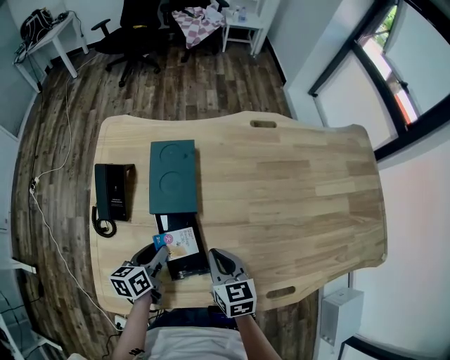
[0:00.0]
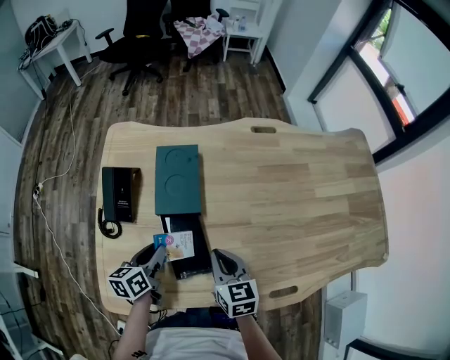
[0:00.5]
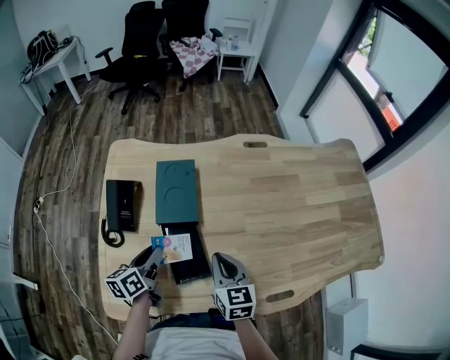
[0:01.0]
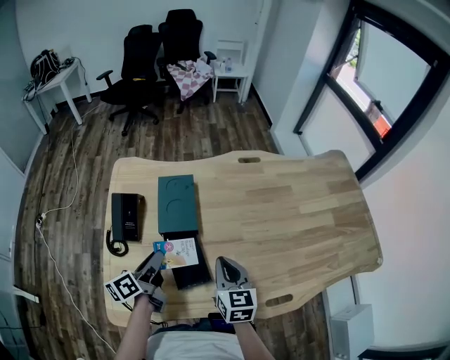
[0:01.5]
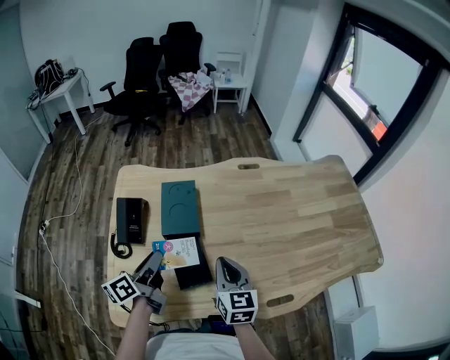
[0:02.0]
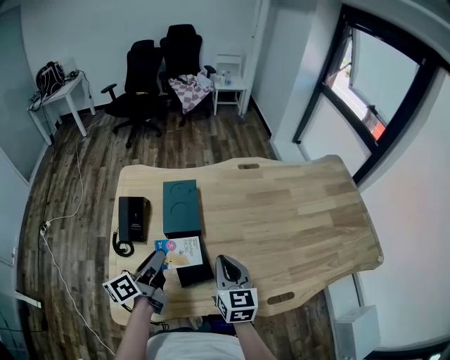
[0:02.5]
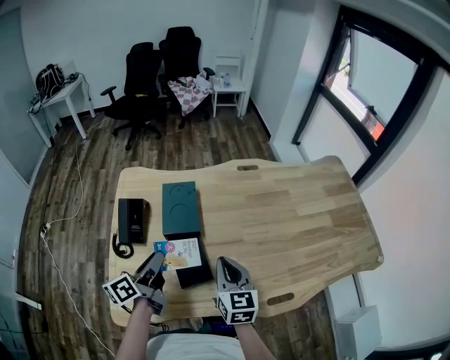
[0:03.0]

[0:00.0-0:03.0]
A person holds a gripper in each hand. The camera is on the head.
0.0 to 1.5 s: The two grippers go approximately 10 cm upward. The left gripper rotates about 30 degrees.
1.5 to 3.0 s: The left gripper travels upward by roughly 5 cm.

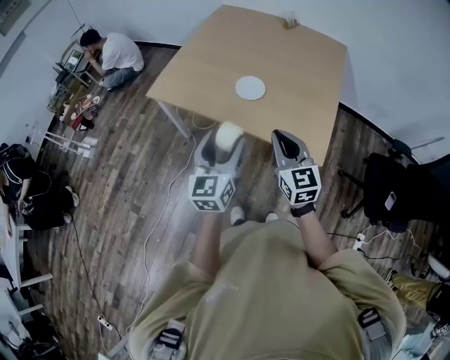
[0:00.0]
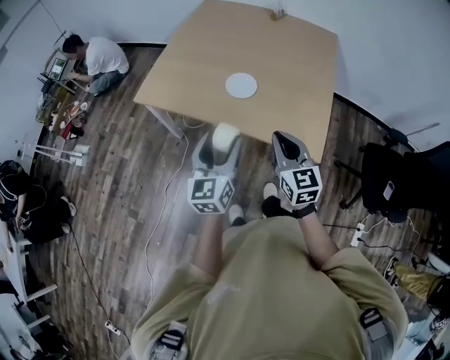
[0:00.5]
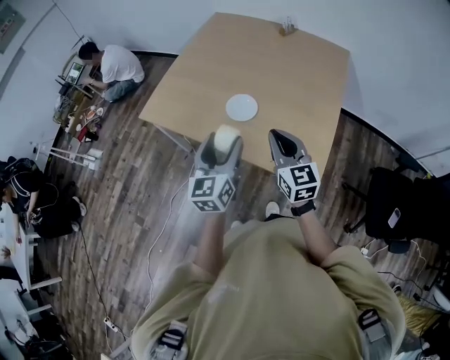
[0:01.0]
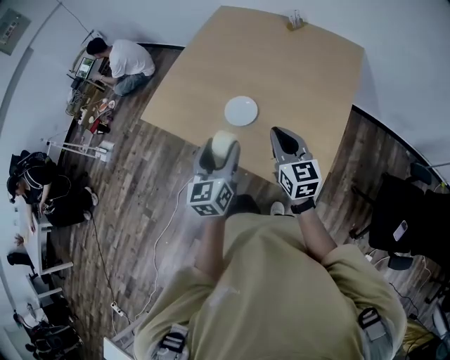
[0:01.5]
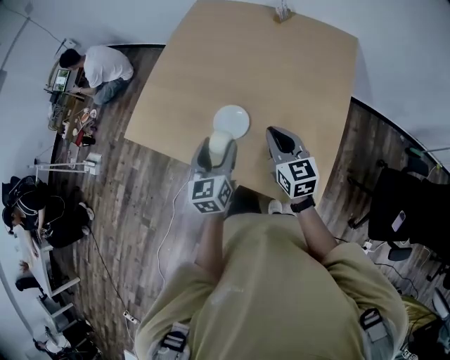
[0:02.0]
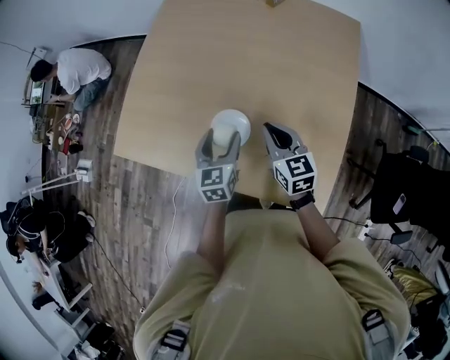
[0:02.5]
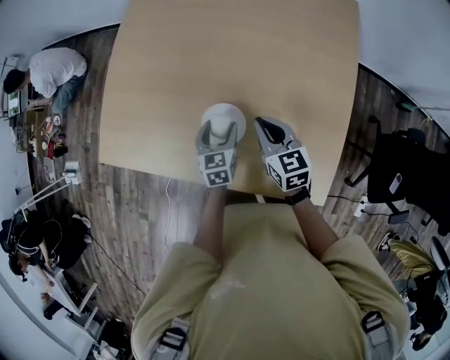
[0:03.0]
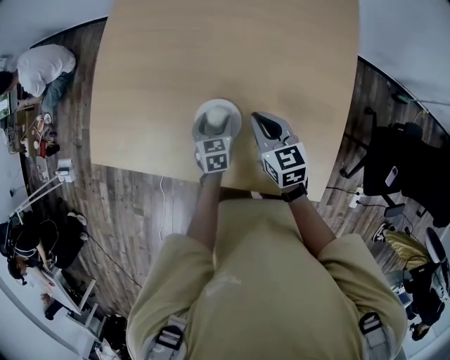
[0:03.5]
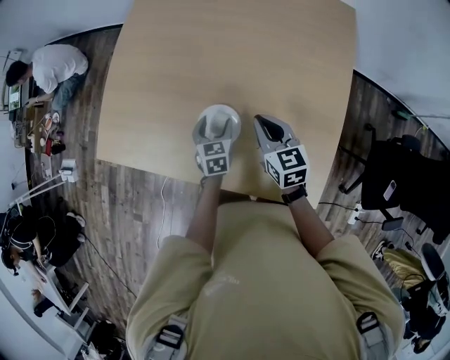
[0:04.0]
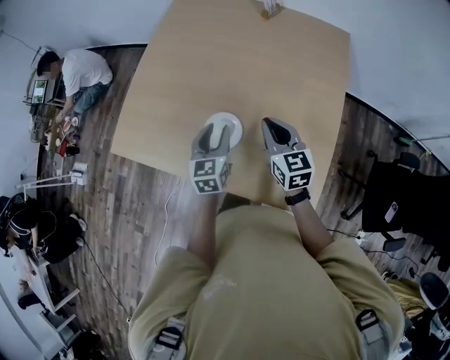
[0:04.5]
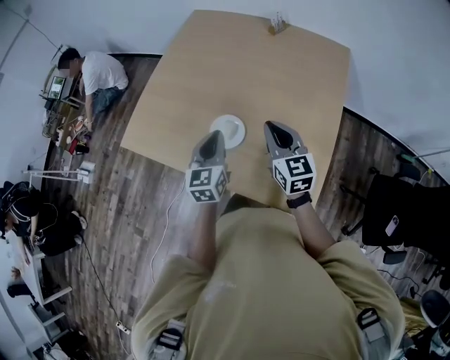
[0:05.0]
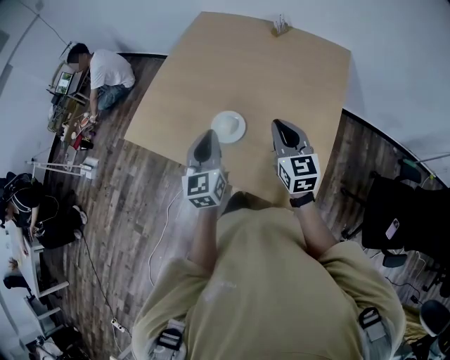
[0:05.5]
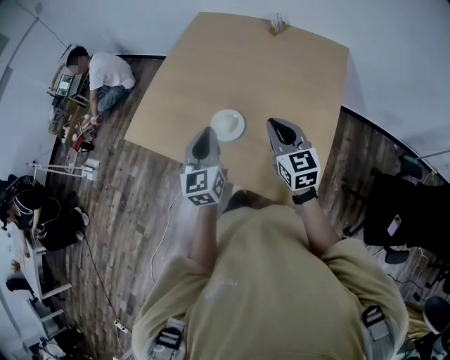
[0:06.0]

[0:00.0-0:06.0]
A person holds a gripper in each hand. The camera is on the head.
0.0 to 2.0 s: Both grippers move forward and to the right, about 35 cm.
2.0 to 4.0 s: The right gripper shifts some 15 cm forward and downward. Meanwhile the left gripper is displaced downward and forward by roughly 25 cm, and turns by roughly 30 degrees.
4.0 to 6.0 s: The left gripper shifts approximately 35 cm upward and backward, tips its fingers upward by approximately 30 degrees, and closes; the right gripper moves backward and upward, roughly 20 cm, and rotates about 20 degrees.

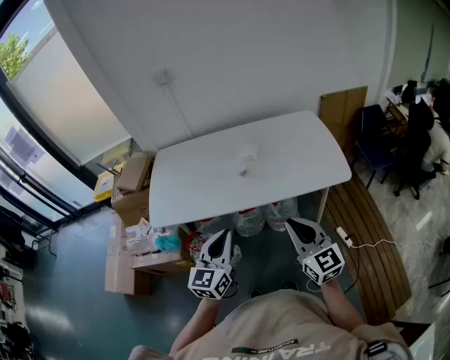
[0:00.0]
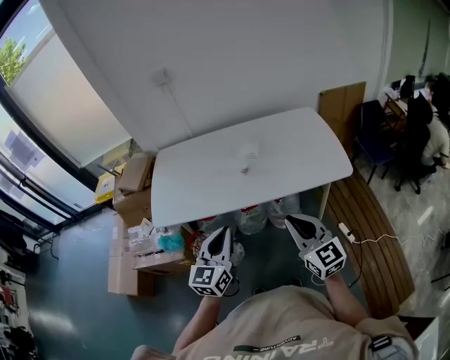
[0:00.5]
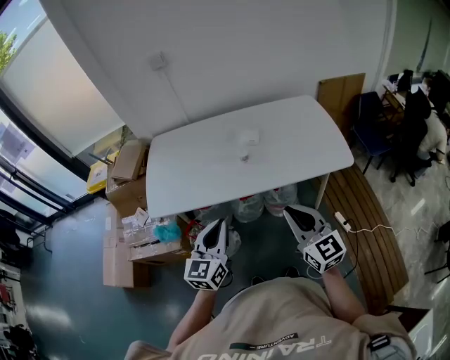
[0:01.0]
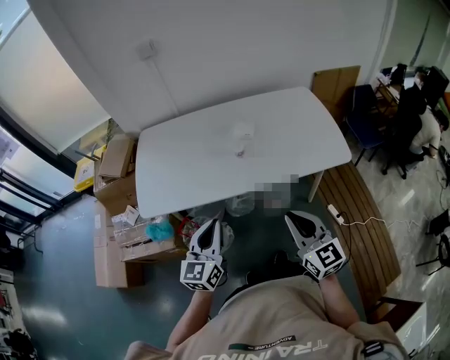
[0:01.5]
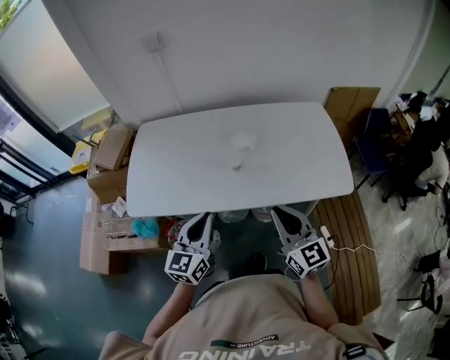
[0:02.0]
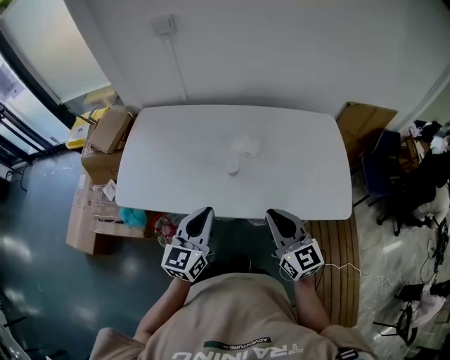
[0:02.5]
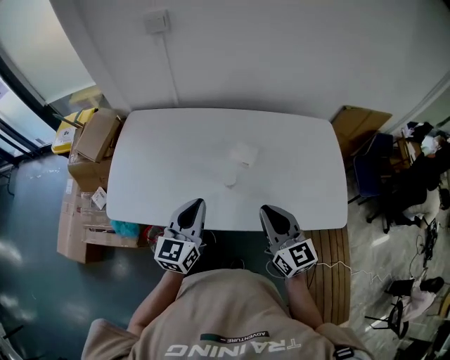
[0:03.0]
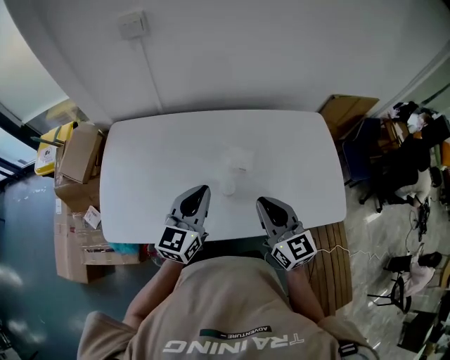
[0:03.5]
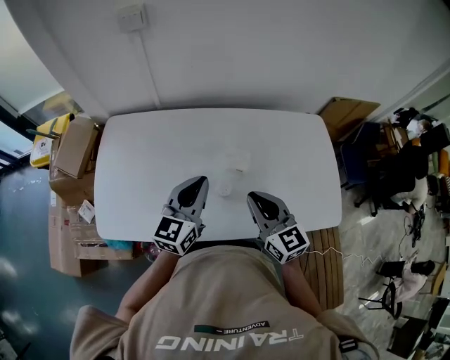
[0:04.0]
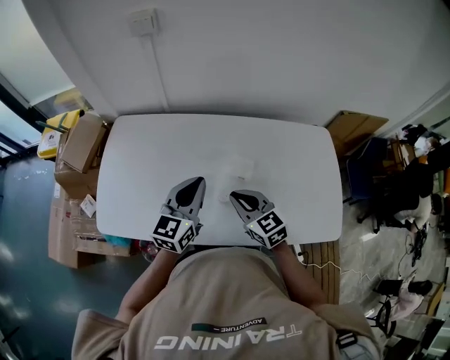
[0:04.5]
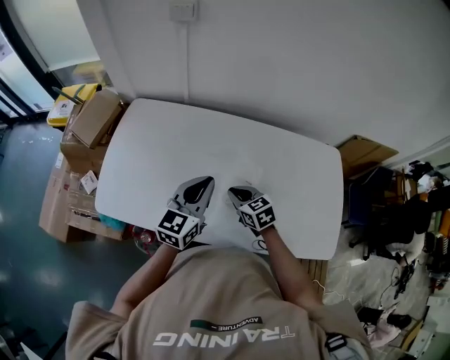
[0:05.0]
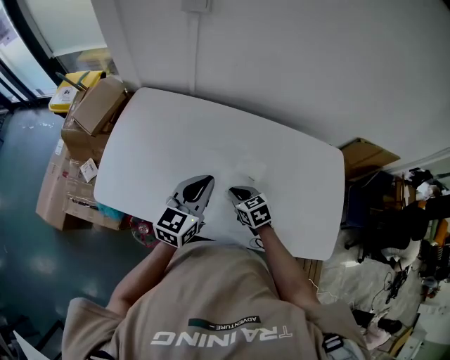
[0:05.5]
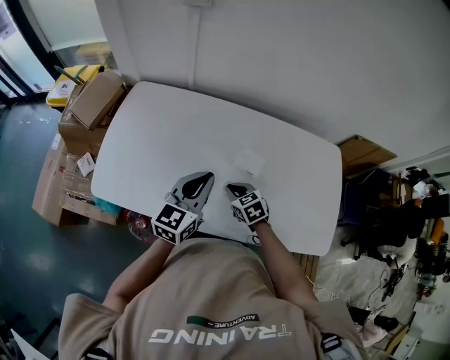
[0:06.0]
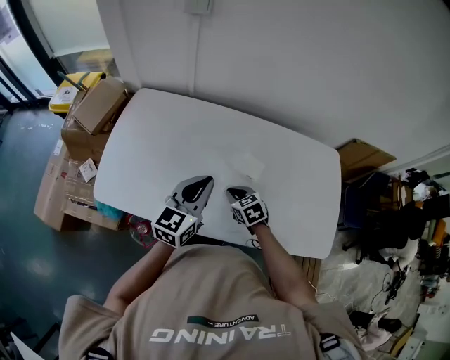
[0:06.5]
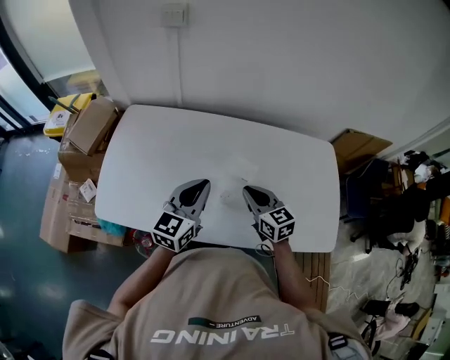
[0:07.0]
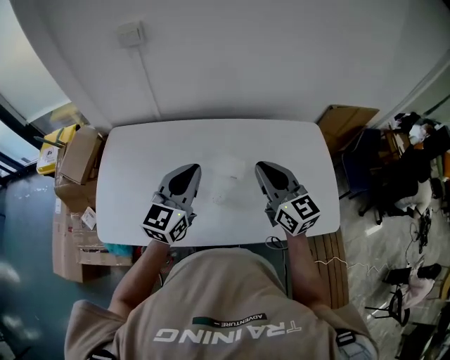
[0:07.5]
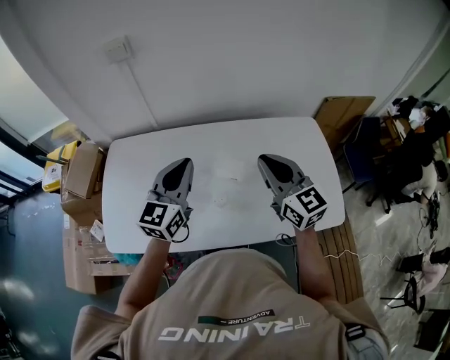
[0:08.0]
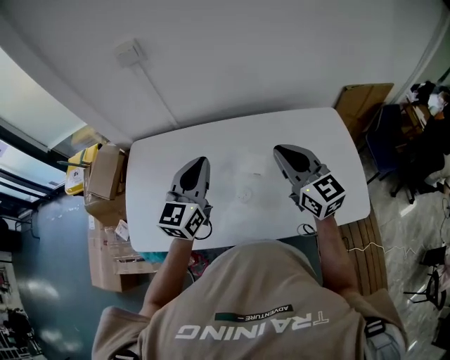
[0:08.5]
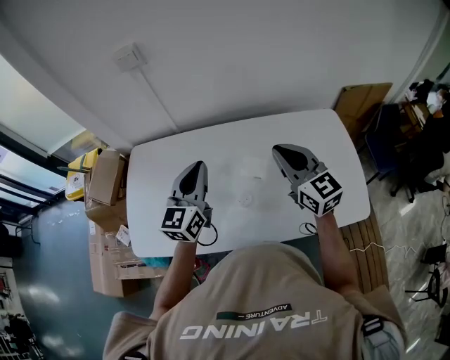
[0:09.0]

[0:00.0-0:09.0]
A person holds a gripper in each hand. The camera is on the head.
0.0 to 2.0 s: Both grippers move forward, some 10 cm.
2.0 to 4.5 s: The grippers both shift forward by approximately 25 cm. The right gripper changes its angle by some 30 degrees.
4.5 to 7.0 s: The right gripper reaches approximately 15 cm downward, then returns.
7.0 to 9.0 s: The right gripper travels upward by about 15 cm, and changes its angle by about 20 degrees. The left gripper moves forward and upward, some 10 cm.

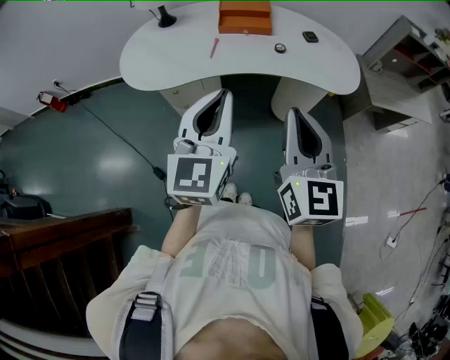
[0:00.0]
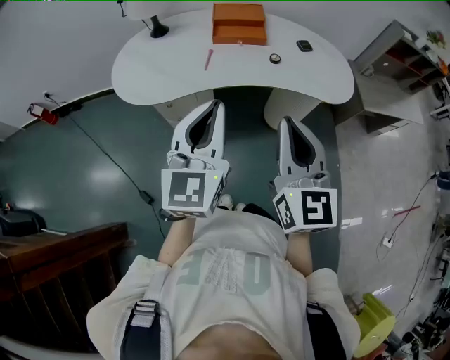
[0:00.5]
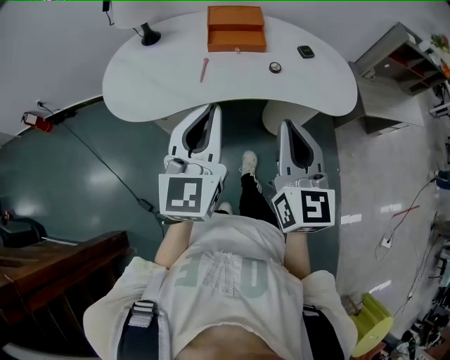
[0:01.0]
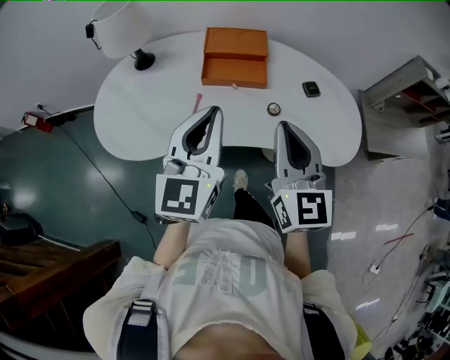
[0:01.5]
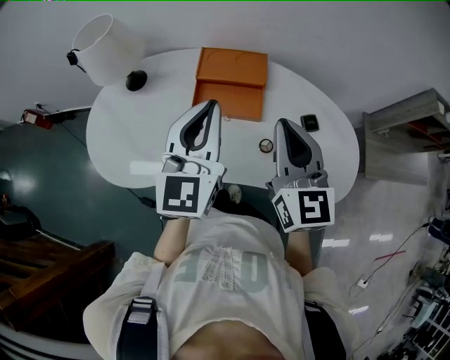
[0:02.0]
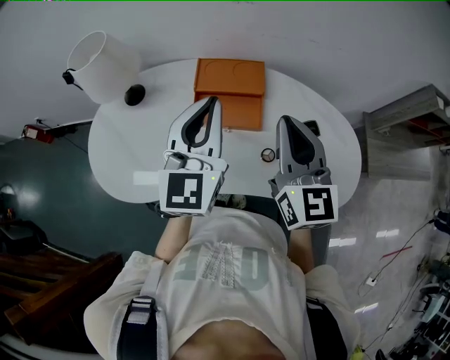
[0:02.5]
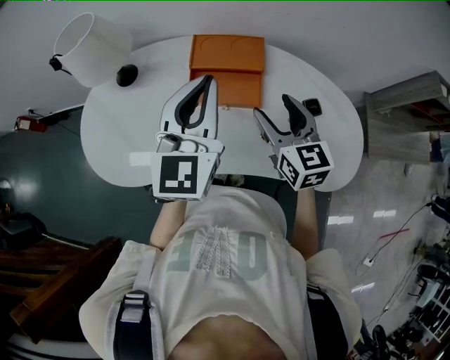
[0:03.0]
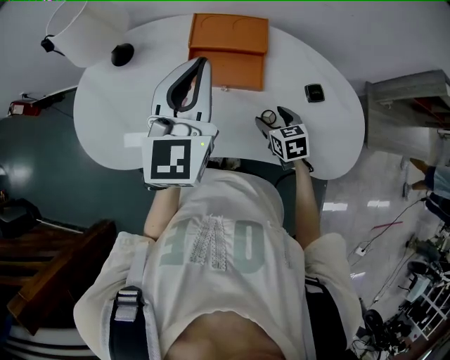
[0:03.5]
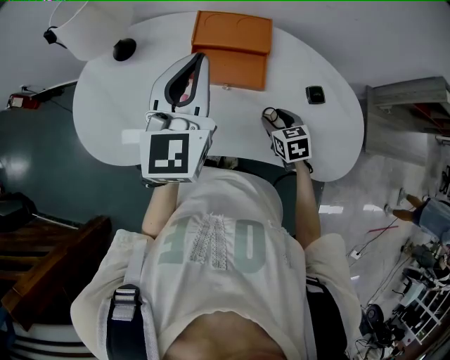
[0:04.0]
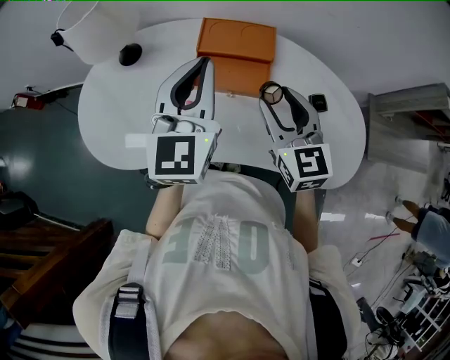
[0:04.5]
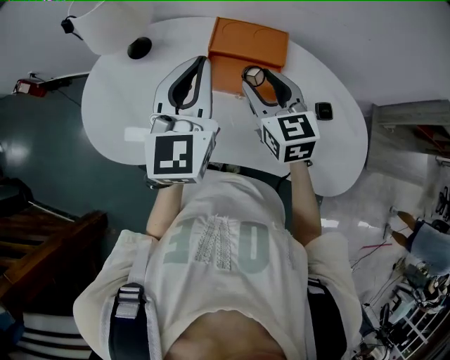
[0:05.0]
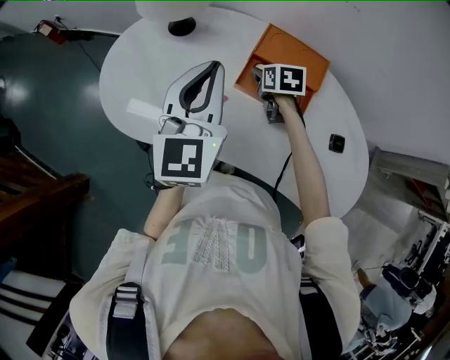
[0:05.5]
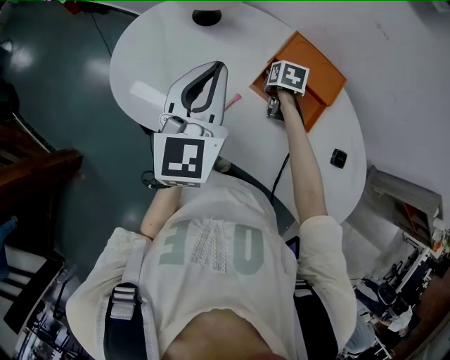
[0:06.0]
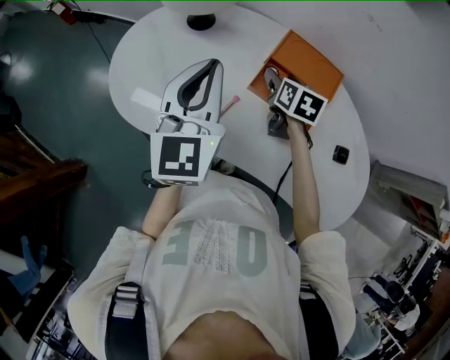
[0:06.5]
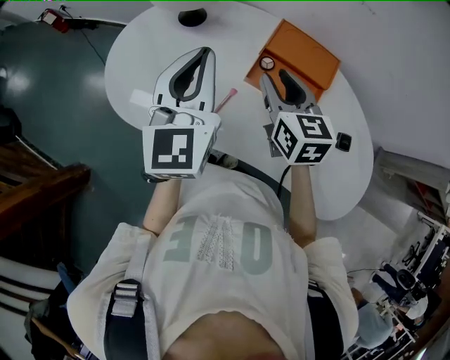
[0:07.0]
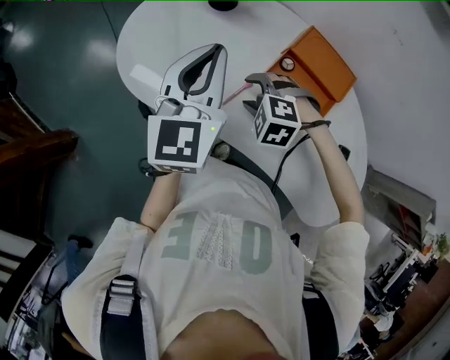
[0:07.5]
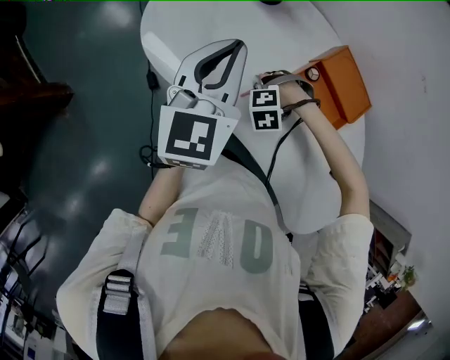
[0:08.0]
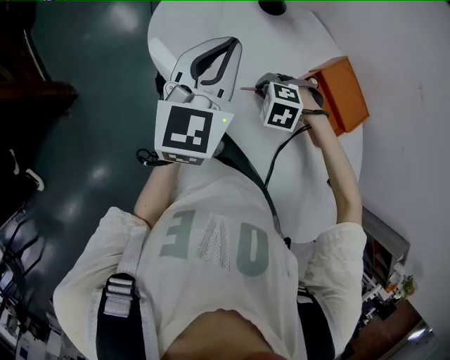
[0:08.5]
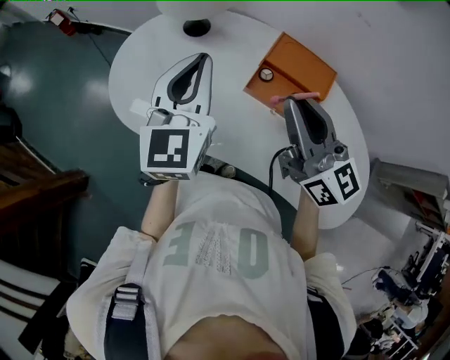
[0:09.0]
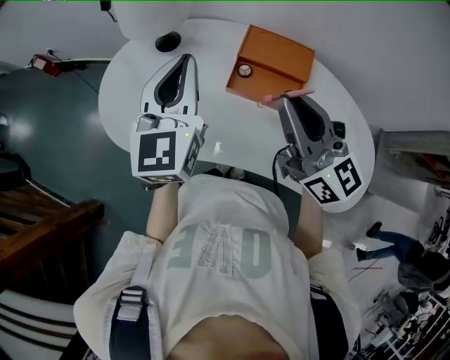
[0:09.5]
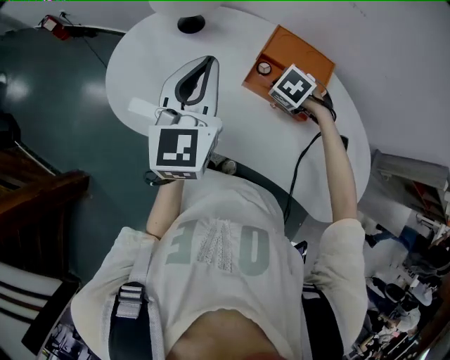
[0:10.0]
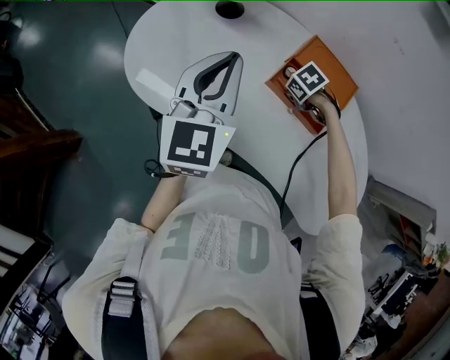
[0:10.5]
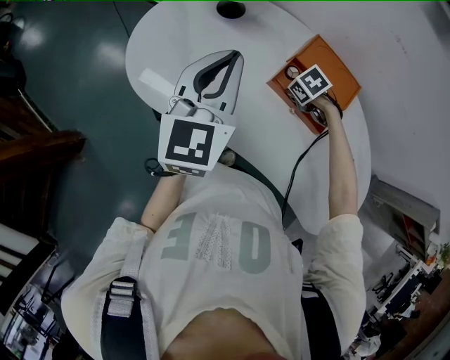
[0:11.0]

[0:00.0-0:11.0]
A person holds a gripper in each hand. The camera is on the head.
0.0 to 2.0 s: Both grippers are carried forward, approximately 40 cm.
2.0 to 3.5 s: The right gripper moves downward, roughly 30 cm, tilts its fingers about 40 degrees downward, and opens its fingers.
3.5 to 5.5 s: The left gripper moves to the left, about 10 cm. Meanwhile the right gripper travels forward and to the left by approximately 25 cm, and moves about 25 cm upward and comes back.
5.5 to 7.5 s: The left gripper is displaced to the left by some 10 cm, while the right gripper goes up and down, about 20 cm each way, reversing 2 times, and rotates around the line of its fingers by approximately 90 degrees, counterclockwise from behind.
7.5 to 9.0 s: The right gripper is displaced upward by approximately 25 cm, tilts its fingers some 70 degrees upward, and closes up.
9.0 to 11.0 s: The right gripper travels downward by some 35 cm, and angles its fingers downward, by about 90 degrees.
